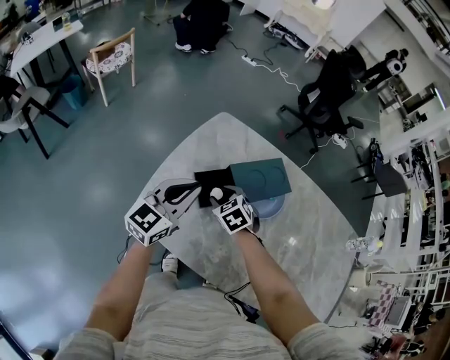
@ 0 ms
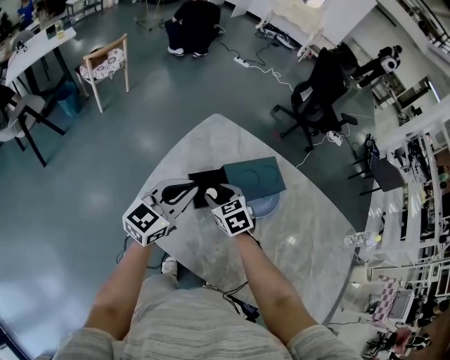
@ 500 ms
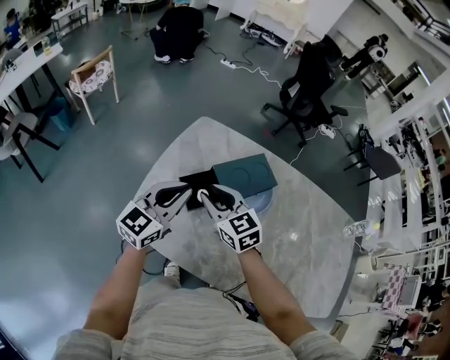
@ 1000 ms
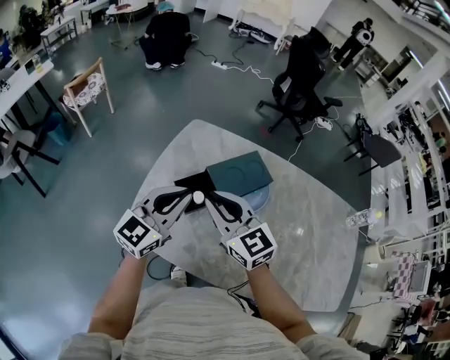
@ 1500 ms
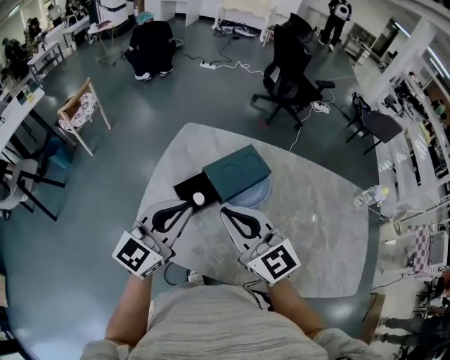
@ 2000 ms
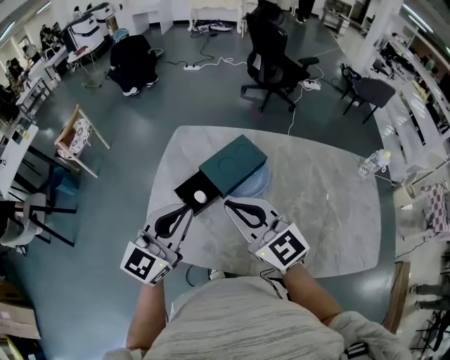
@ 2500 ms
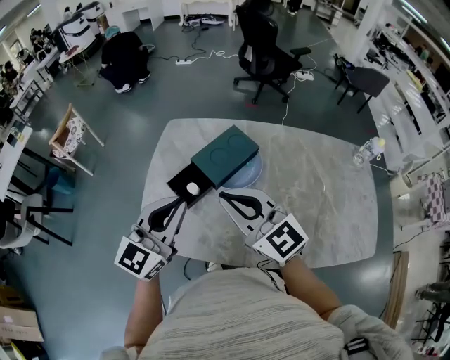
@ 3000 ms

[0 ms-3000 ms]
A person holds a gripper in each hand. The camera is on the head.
0 ms to 1500 ms: The left gripper goes some 5 cm upward, while the right gripper shifts roughly 20 cm upward, tilts its fingers approximately 50 degrees upward, and closes.
1500 ms to 3000 ms: The left gripper goes approximately 10 cm backward and upward; the right gripper is displaced to the right, backward and upward by roughly 10 cm.

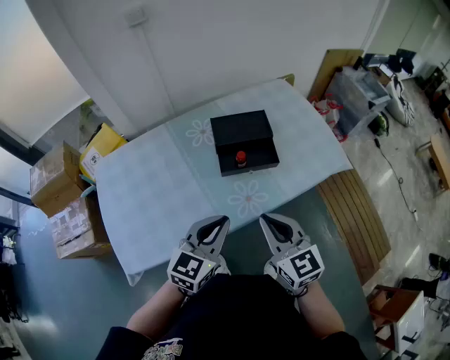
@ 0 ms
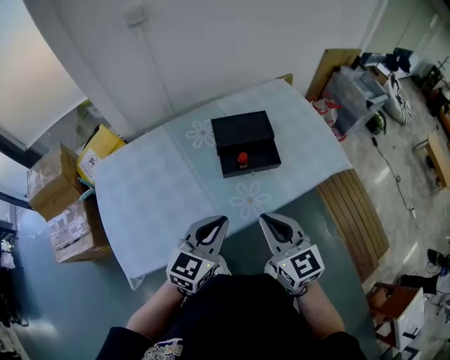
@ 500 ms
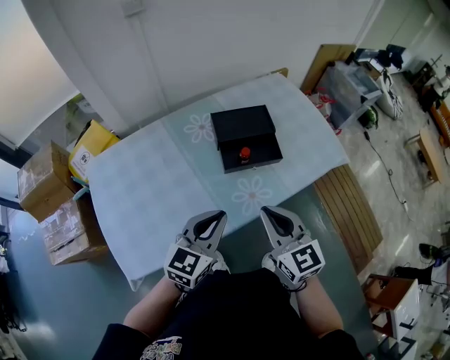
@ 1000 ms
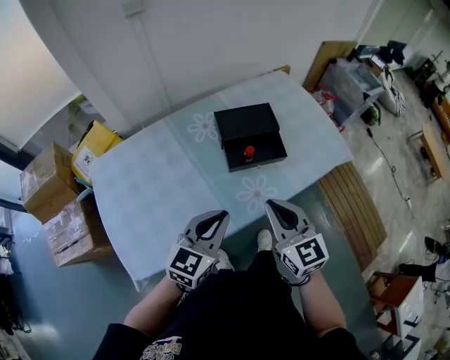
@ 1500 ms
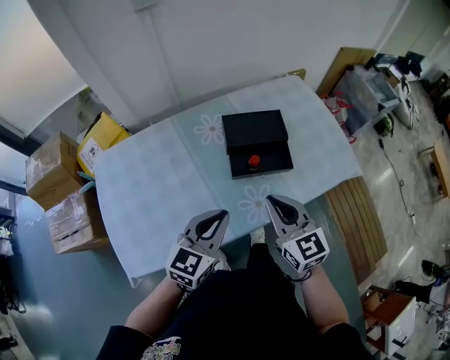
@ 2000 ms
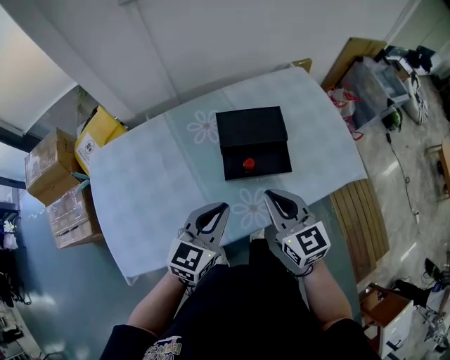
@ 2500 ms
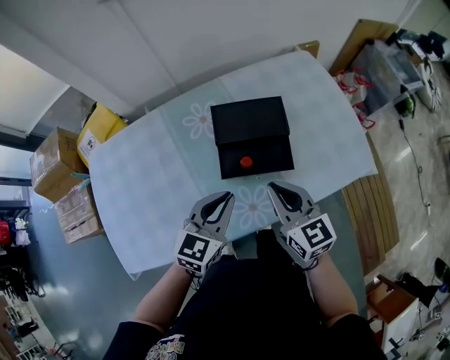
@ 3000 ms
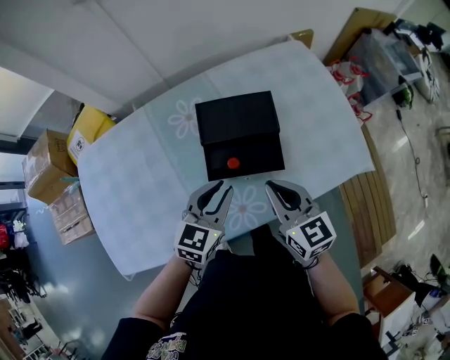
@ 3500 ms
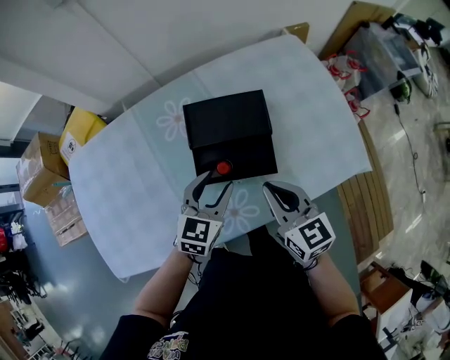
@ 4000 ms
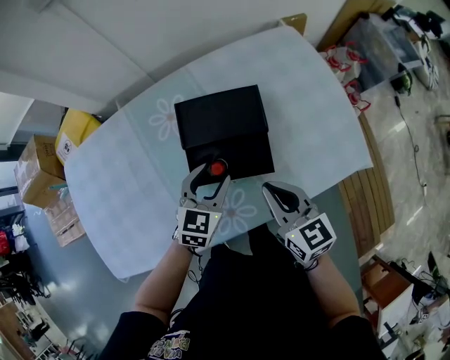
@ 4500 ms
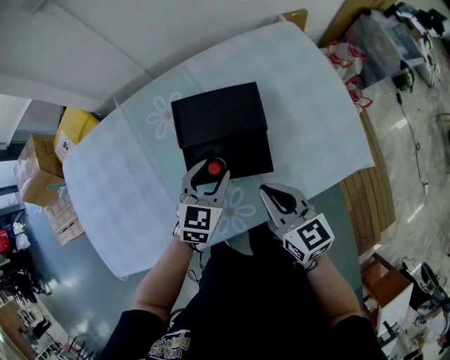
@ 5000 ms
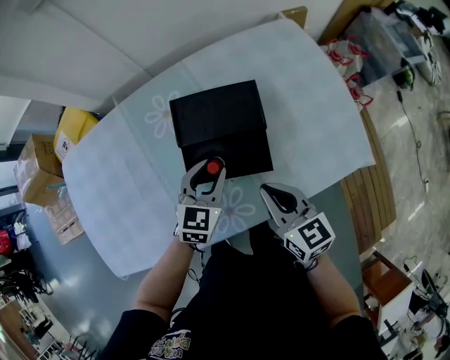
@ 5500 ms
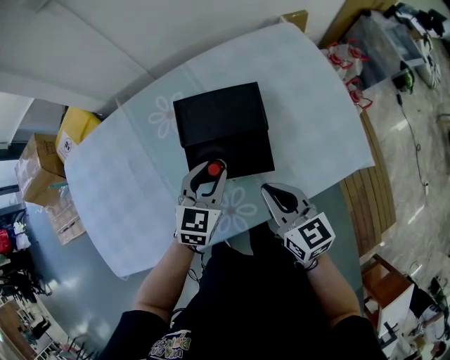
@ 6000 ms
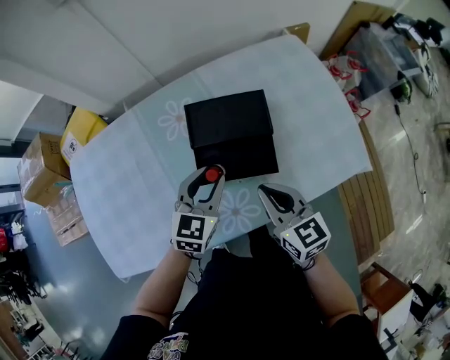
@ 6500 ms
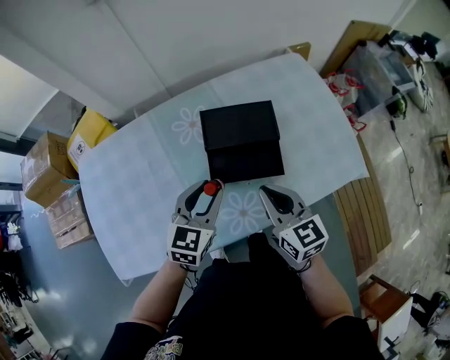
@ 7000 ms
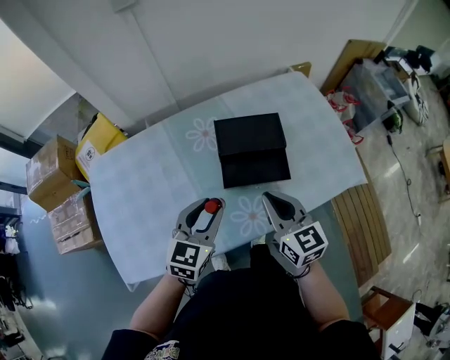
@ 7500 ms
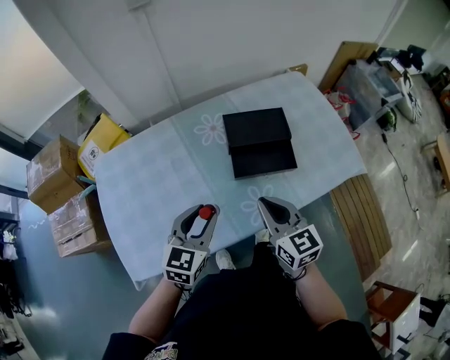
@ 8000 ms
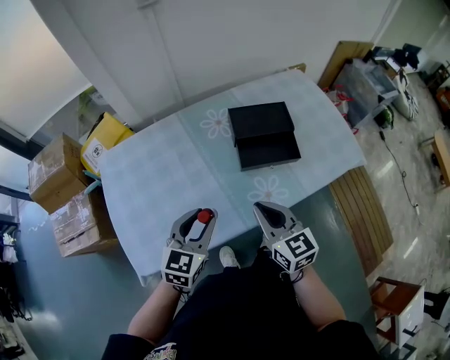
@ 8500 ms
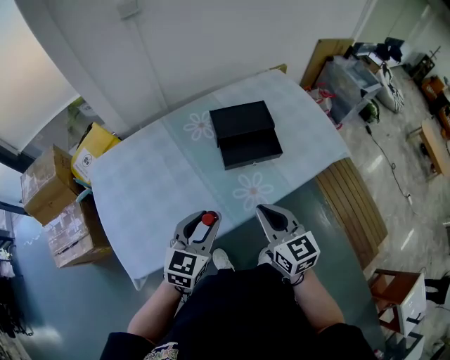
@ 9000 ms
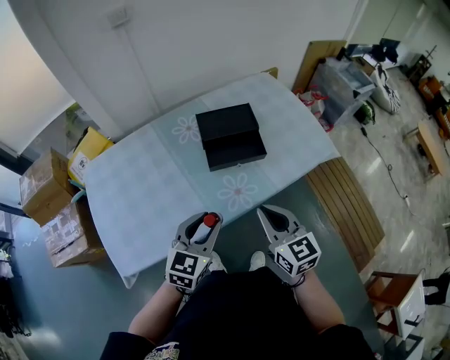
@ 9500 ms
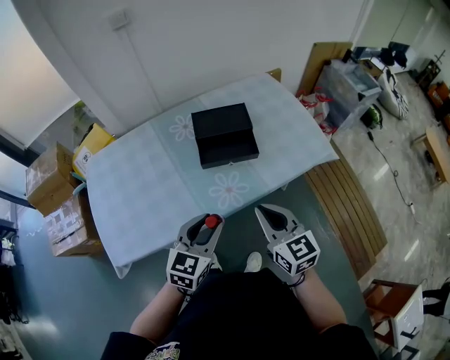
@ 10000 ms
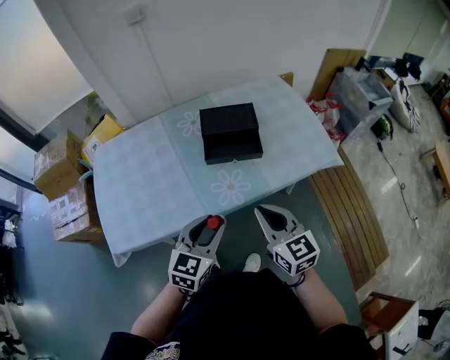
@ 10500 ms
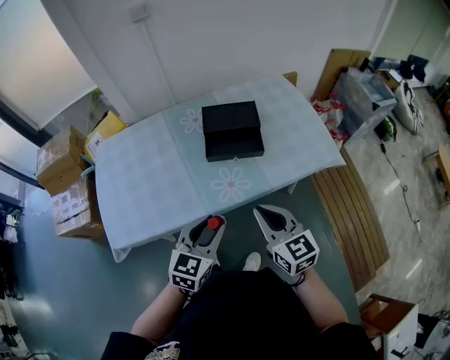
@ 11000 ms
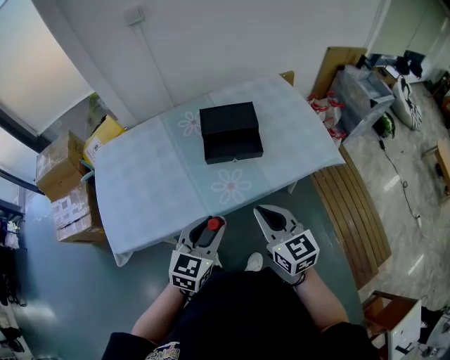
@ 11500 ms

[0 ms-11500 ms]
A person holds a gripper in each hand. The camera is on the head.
0 ms to 2000 ms: The left gripper is displaced forward by about 5 cm. The right gripper shifts approximately 10 cm forward.
2000 ms to 4000 ms: The left gripper heads forward, downward and to the right, covering some 20 cm, and opens up; the right gripper goes roughly 15 cm forward, to the right and downward.
4000 ms to 6000 ms: There are only small adjustments of the grippers.
6000 ms to 7500 ms: The right gripper goes approximately 10 cm to the left and upward, while the left gripper goes about 15 cm to the left, upward and backward.
7500 ms to 9500 ms: The grippers both shift backward by about 15 cm.
9500 ms to 11500 ms: The right gripper changes place by about 5 cm. Meanwhile the left gripper shifts approximately 10 cm to the right and backward.

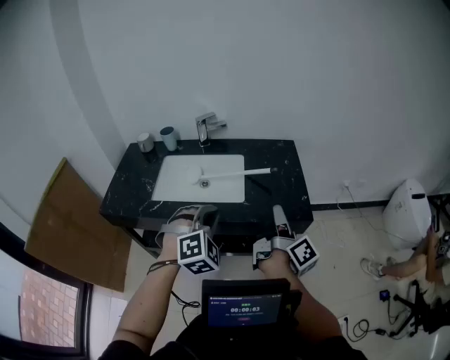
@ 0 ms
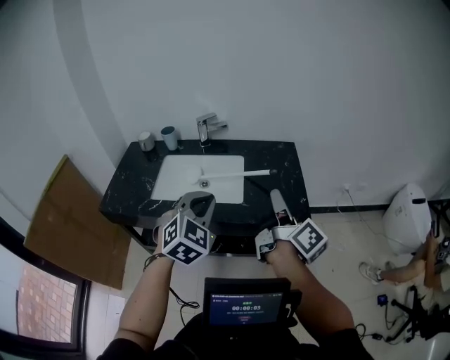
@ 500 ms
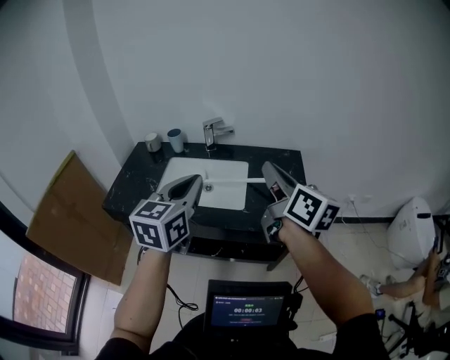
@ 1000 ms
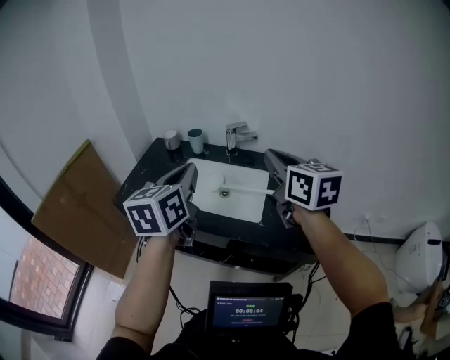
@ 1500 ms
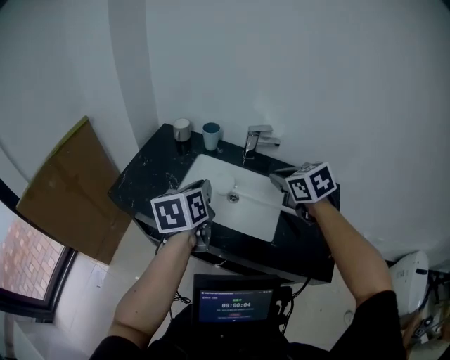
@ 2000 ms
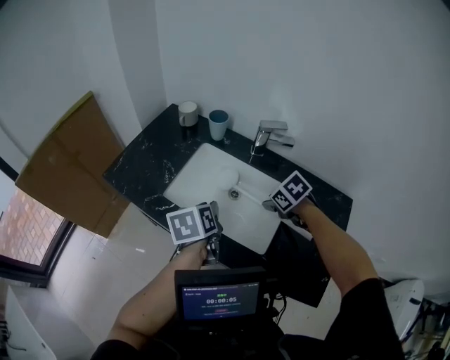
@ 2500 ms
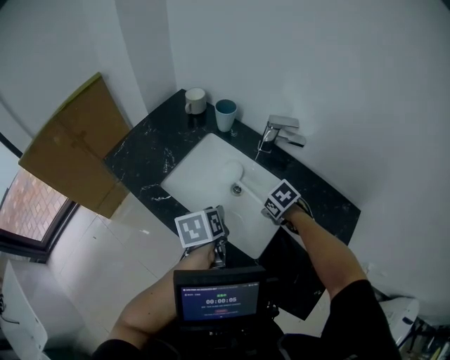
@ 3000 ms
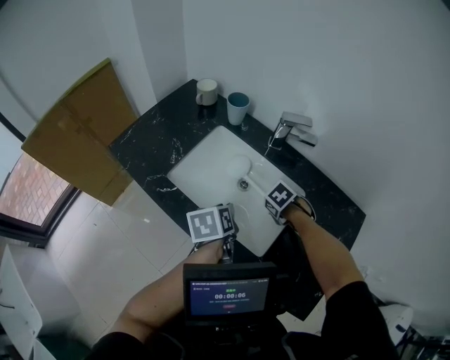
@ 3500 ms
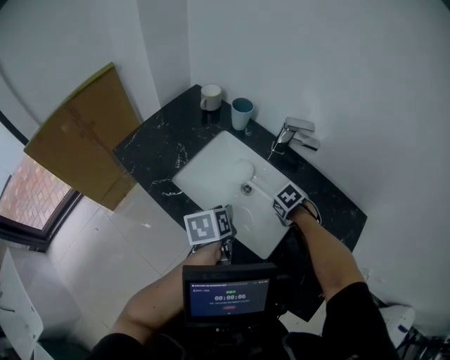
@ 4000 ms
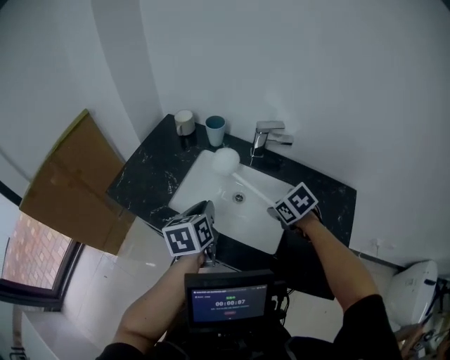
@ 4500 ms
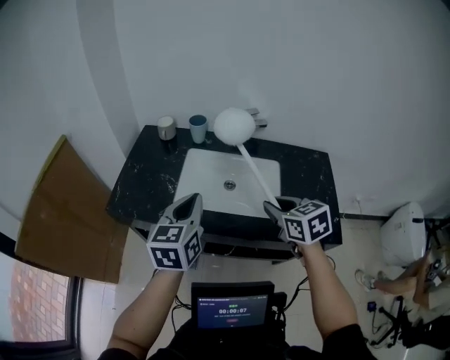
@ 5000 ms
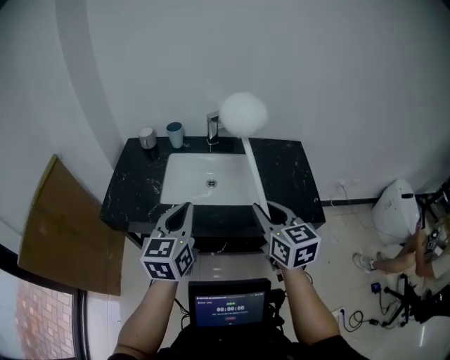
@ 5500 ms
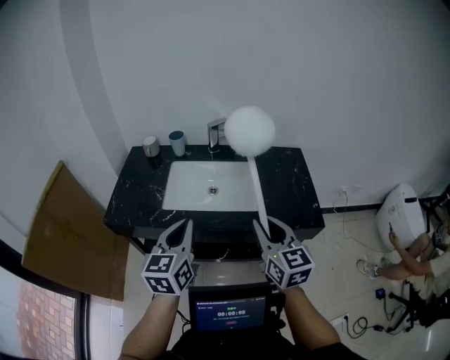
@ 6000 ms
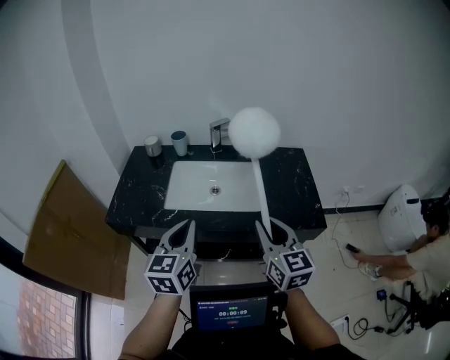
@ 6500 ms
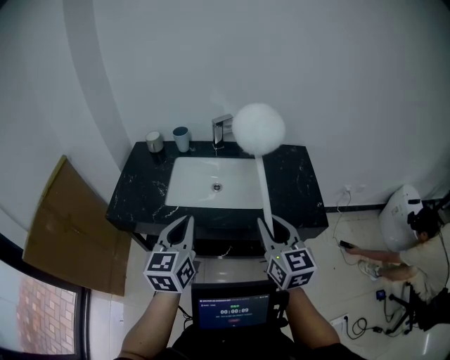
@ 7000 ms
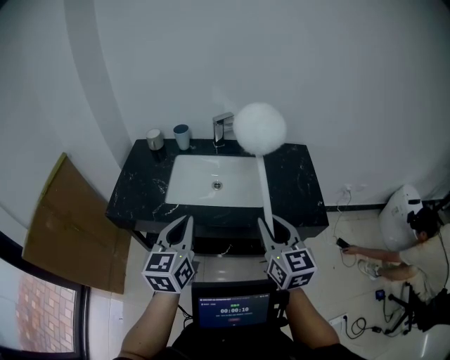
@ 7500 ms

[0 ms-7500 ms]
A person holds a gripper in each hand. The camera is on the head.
0 ms to 2000 ms: The right gripper goes upward and returns, about 15 cm each way, and angles its fingers downward, by some 50 degrees. The left gripper moves some 20 cm upward and comes back, and twists approximately 100 degrees counterclockwise, seen from behind.
2000 ms to 4000 ms: The right gripper goes roughly 30 cm downward, and tilts its fingers roughly 50 degrees downward. Meanwhile the left gripper travels downward by roughly 20 cm, and turns by roughly 30 degrees.
4000 ms to 5500 ms: The left gripper moves roughly 35 cm, tips its fingers upward by about 30 degrees, and closes; the right gripper shifts by approximately 50 cm, and tips its fingers upward by approximately 80 degrees.
5500 ms to 7500 ms: The grippers stay close to where they were, moving slightly.

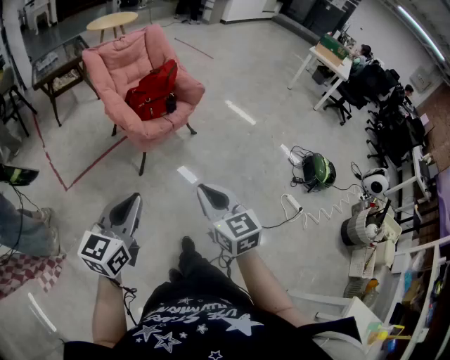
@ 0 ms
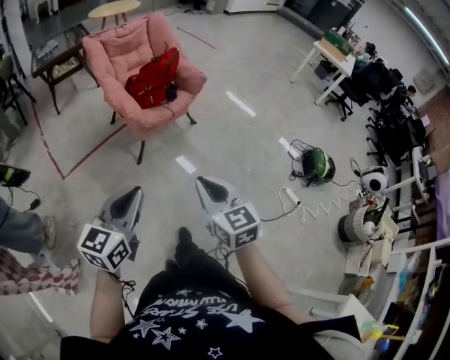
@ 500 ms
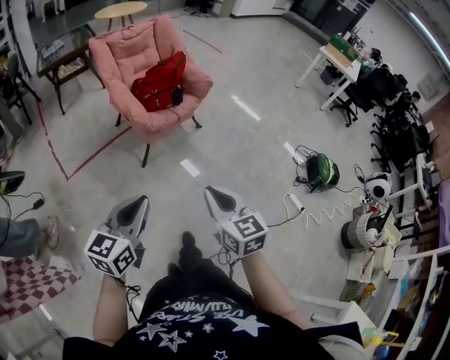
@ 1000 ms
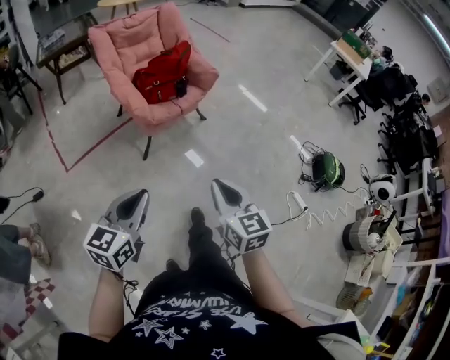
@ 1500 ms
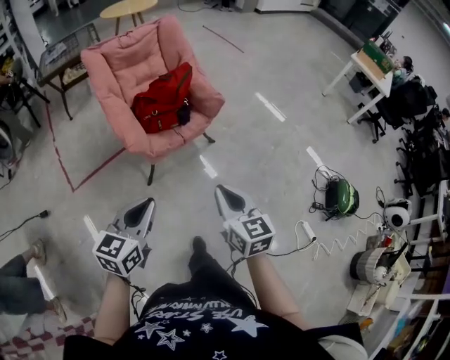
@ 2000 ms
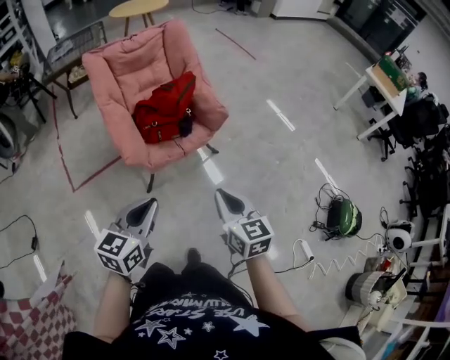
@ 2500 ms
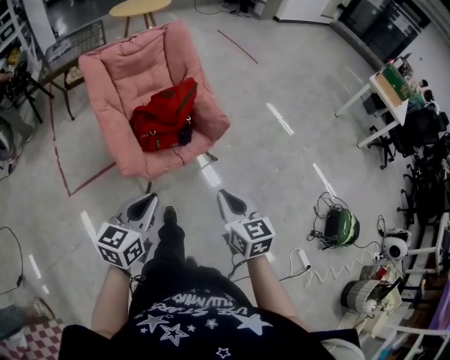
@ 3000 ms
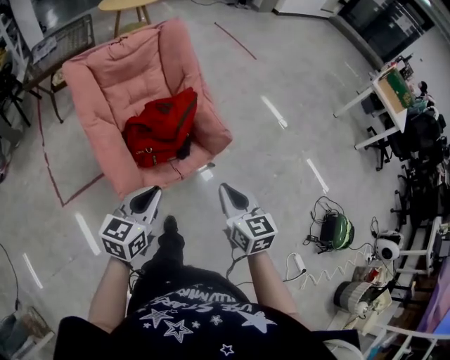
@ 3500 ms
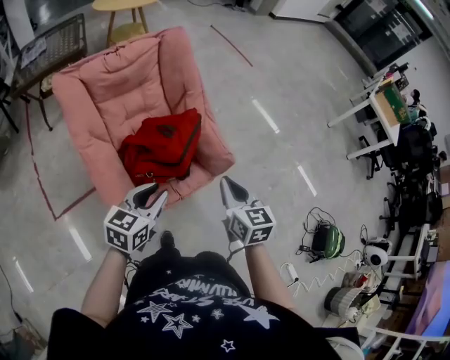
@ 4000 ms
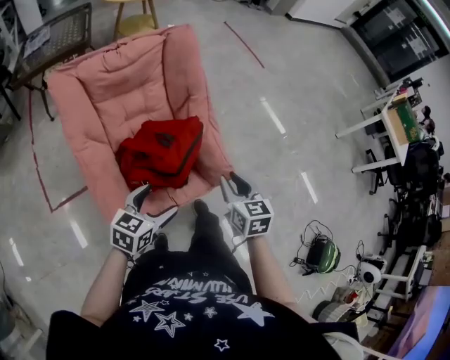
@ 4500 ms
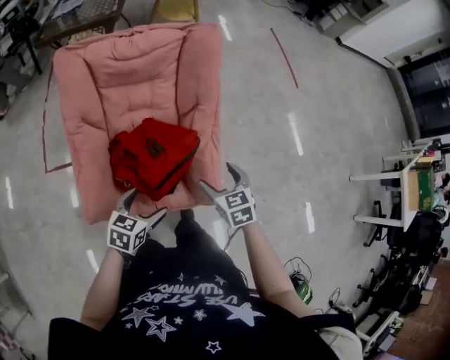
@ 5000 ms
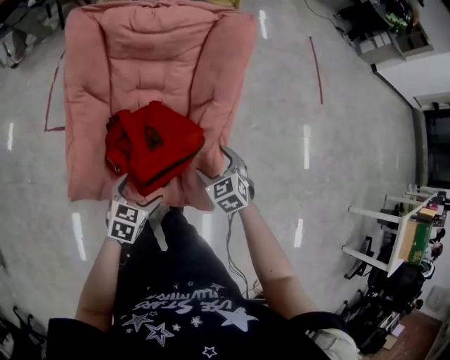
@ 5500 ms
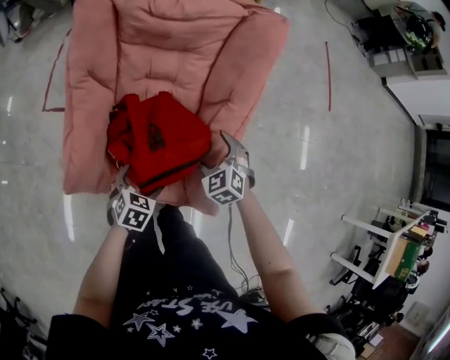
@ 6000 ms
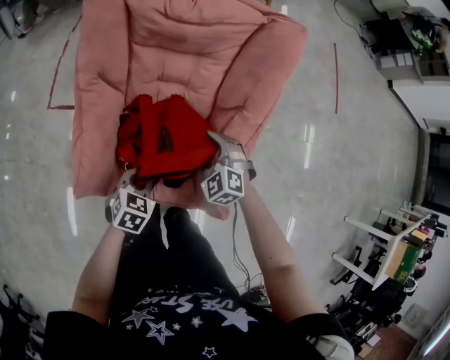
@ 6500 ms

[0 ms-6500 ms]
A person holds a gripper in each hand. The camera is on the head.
0 ms to 2000 ms: Both grippers travel together forward, about 25 cm.
2000 ms to 4500 ms: The two grippers travel together, forward, some 50 cm. The left gripper opens up.
4500 ms to 6500 ms: The right gripper ends up some 35 cm from where it was, twists approximately 70 degrees counterclockwise, seen from behind, and opens its fingers. Meanwhile the left gripper travels downward by approximately 20 cm, swivels roughly 40 degrees, and closes up.
